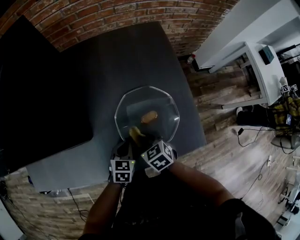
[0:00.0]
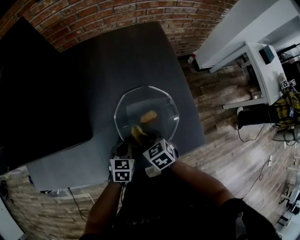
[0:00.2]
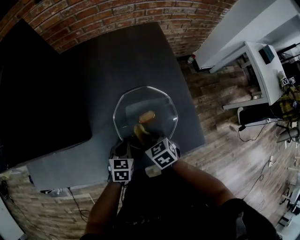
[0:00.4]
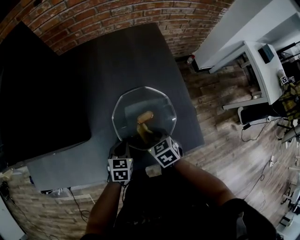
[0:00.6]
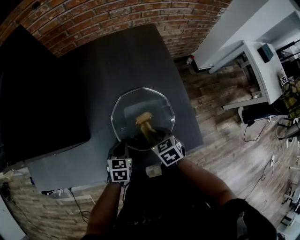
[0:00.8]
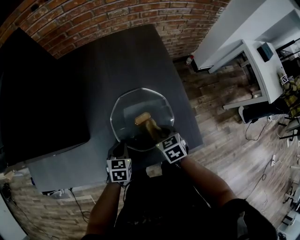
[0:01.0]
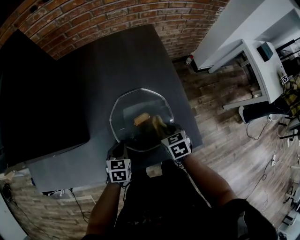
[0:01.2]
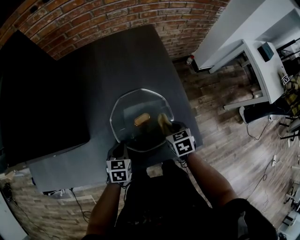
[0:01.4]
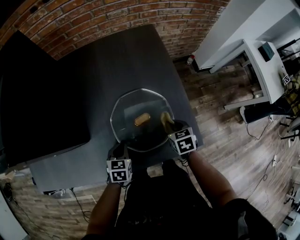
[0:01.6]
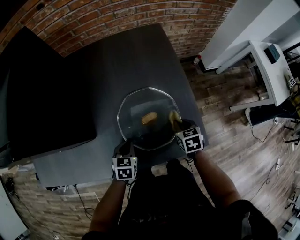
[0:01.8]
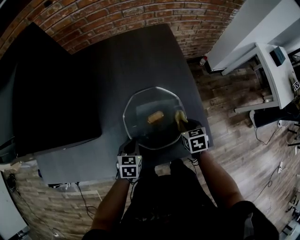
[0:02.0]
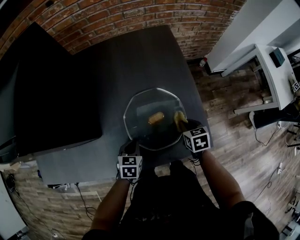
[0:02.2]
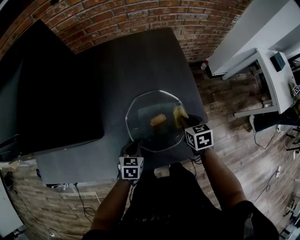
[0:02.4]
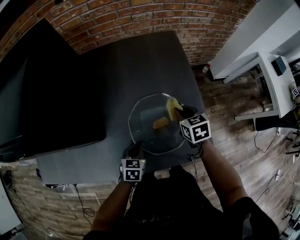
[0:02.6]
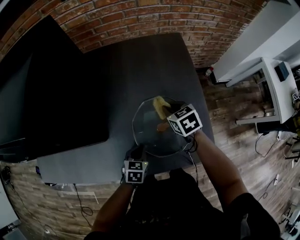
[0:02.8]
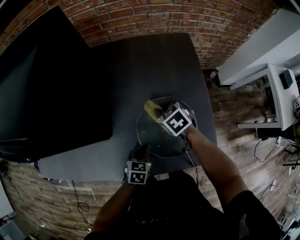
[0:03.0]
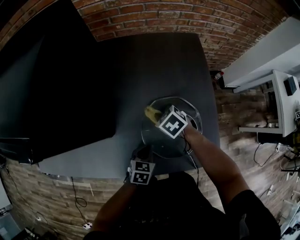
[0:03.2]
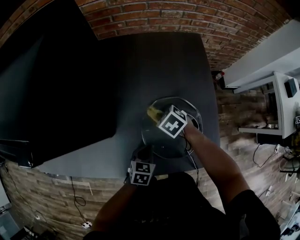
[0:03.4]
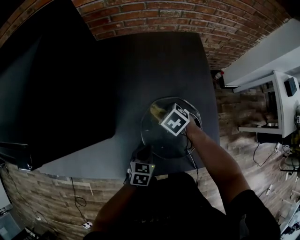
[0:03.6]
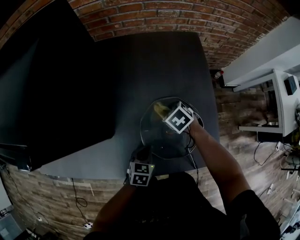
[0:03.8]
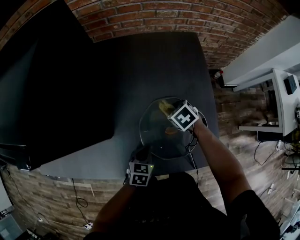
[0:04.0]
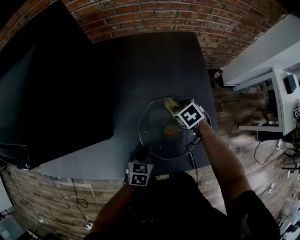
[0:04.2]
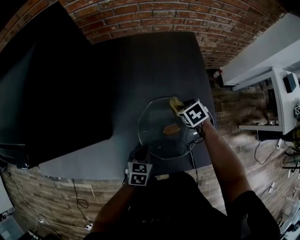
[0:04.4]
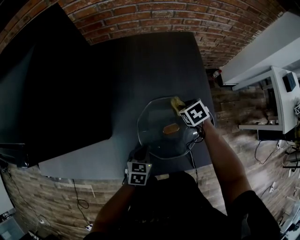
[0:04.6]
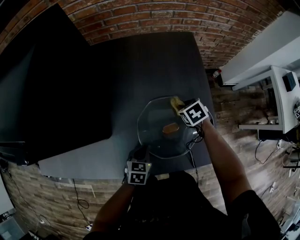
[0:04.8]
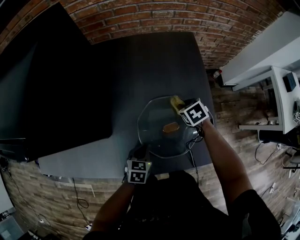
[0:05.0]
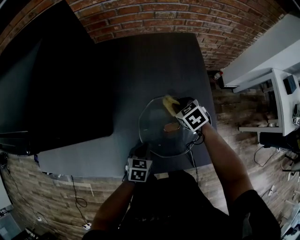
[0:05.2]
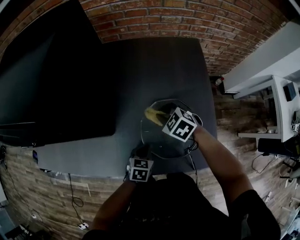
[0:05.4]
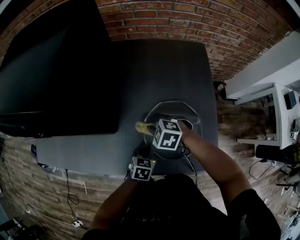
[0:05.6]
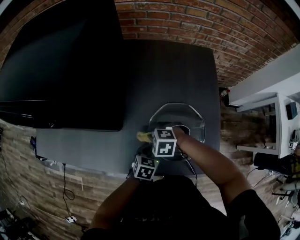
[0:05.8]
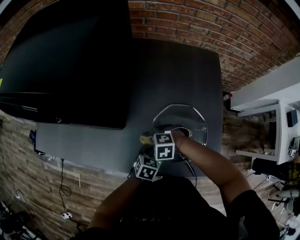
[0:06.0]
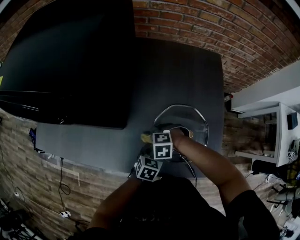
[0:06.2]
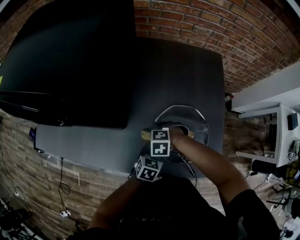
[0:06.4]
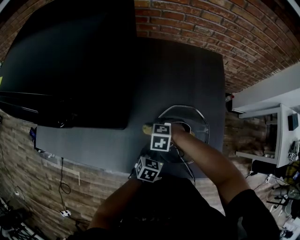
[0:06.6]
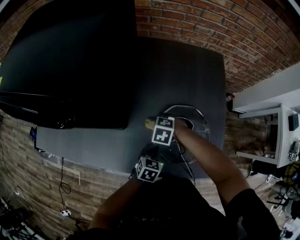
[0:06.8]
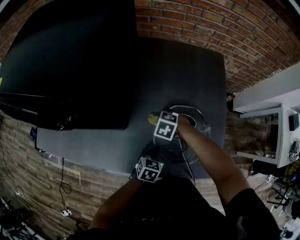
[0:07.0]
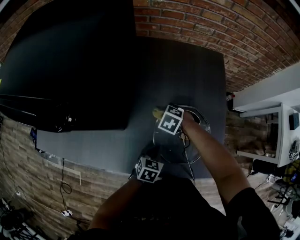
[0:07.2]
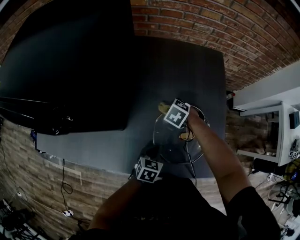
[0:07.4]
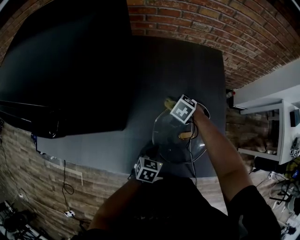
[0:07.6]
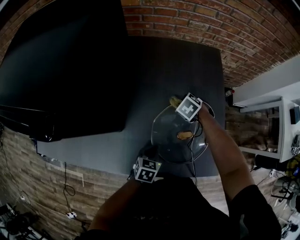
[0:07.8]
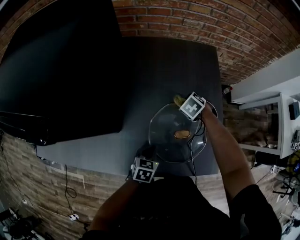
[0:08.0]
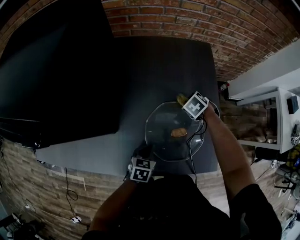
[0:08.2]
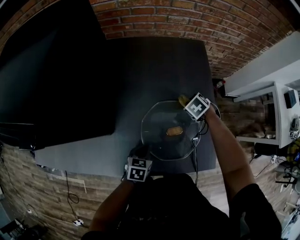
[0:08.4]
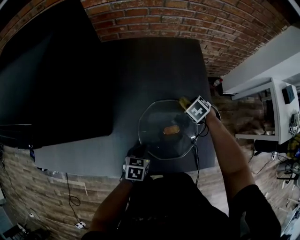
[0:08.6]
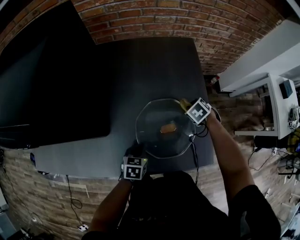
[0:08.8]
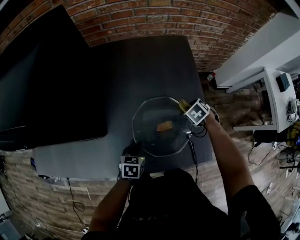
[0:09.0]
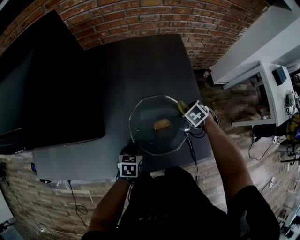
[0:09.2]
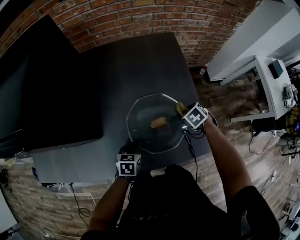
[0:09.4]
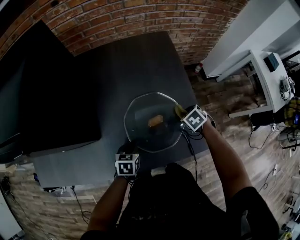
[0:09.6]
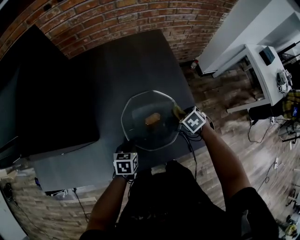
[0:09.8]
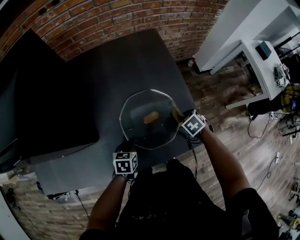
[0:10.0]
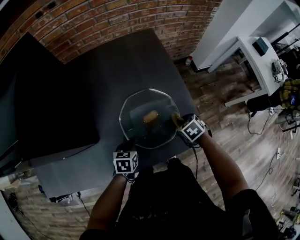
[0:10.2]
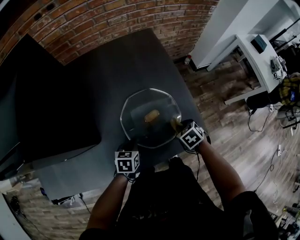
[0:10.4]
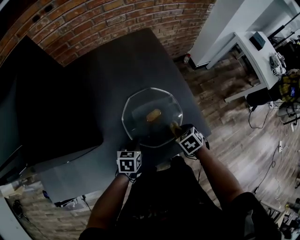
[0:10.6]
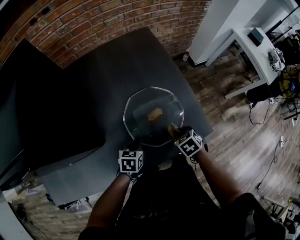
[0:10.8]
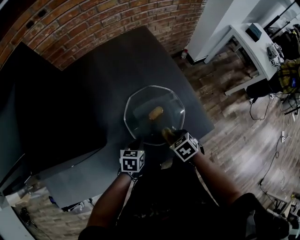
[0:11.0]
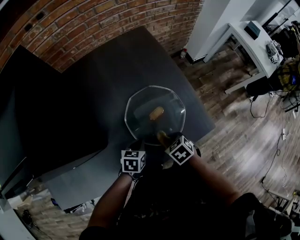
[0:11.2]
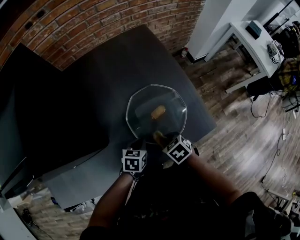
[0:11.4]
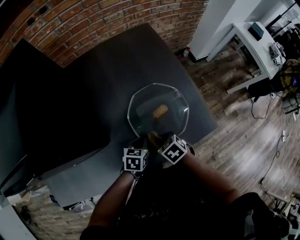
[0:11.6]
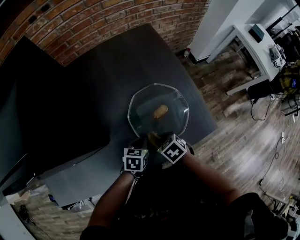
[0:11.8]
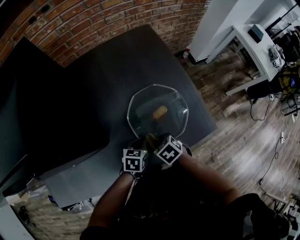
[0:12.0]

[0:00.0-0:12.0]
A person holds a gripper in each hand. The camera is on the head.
0:00.0 to 0:01.6: The right gripper shifts some 15 cm to the right, and rotates some 20 degrees.
0:01.6 to 0:03.0: The right gripper shifts about 20 cm to the left and forward, and changes its angle by some 30 degrees.
0:03.0 to 0:04.4: The right gripper is displaced to the right and downward by approximately 10 cm.
0:04.4 to 0:06.0: The right gripper moves roughly 25 cm, and rolls counterclockwise, seen from behind, by approximately 70 degrees.
0:06.0 to 0:07.6: The right gripper changes place by some 20 cm, and rotates roughly 40 degrees.
0:07.6 to 0:09.0: The right gripper moves about 20 cm, and swivels about 20 degrees.
0:09.0 to 0:10.4: The right gripper ends up approximately 15 cm from where it was, and changes its angle by some 20 degrees.
0:10.4 to 0:12.0: The right gripper heads to the left, covering roughly 15 cm.

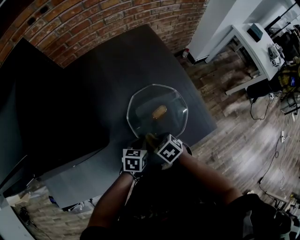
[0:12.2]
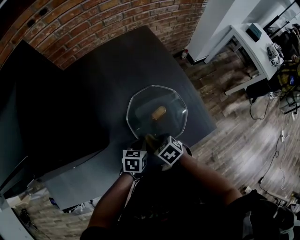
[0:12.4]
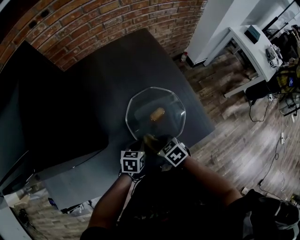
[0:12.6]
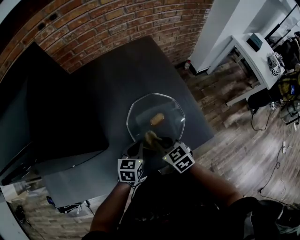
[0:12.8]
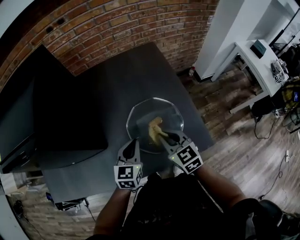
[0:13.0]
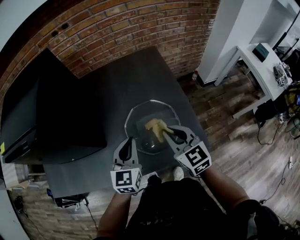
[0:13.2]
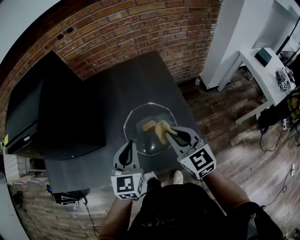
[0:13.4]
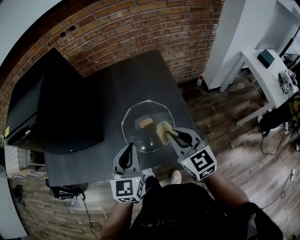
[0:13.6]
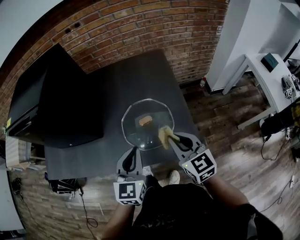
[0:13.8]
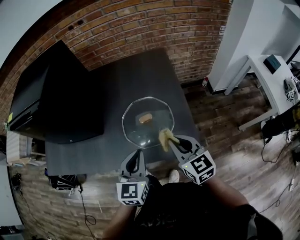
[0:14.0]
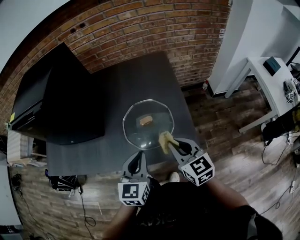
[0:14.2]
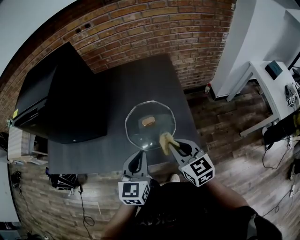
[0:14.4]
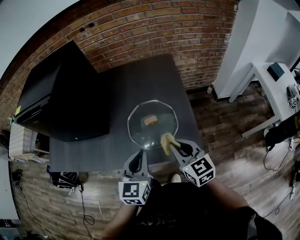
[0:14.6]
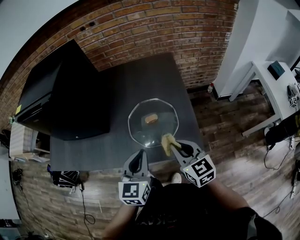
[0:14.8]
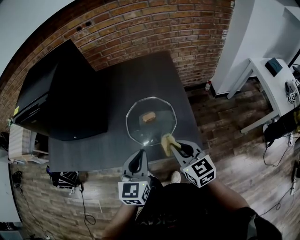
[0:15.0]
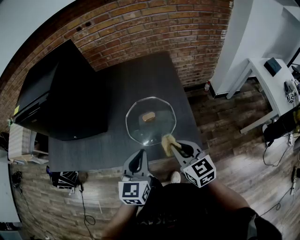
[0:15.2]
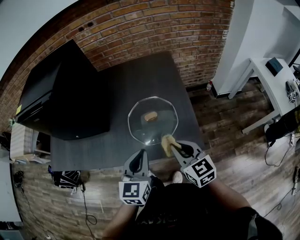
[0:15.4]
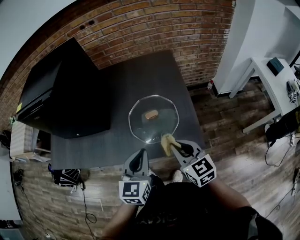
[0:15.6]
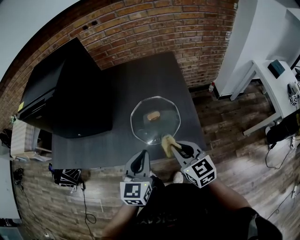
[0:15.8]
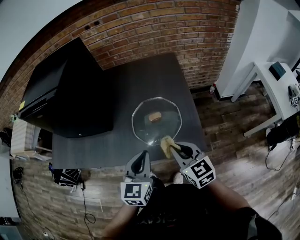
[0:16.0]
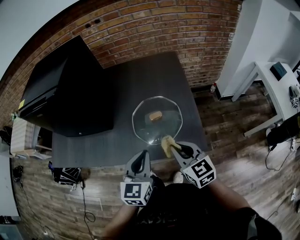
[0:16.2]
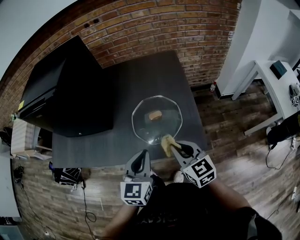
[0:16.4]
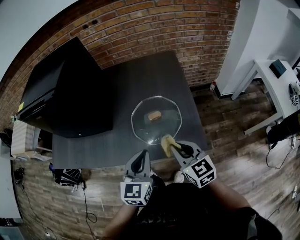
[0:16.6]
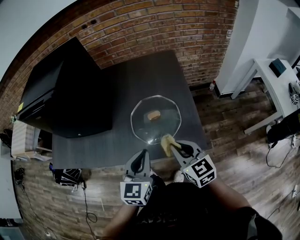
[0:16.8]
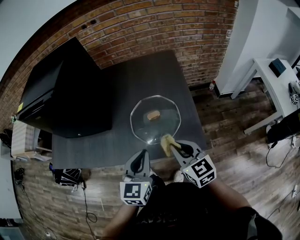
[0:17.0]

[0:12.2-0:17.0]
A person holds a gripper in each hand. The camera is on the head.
0:12.2 to 0:13.8: The left gripper shifts some 25 cm upward, and tips its fingers upward by some 30 degrees; the right gripper goes about 30 cm upward and to the right, and tips its fingers upward by about 50 degrees.
0:13.8 to 0:15.4: The right gripper heads backward, covering approximately 5 cm.
0:15.4 to 0:17.0: The grippers move only a little.

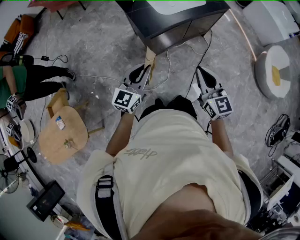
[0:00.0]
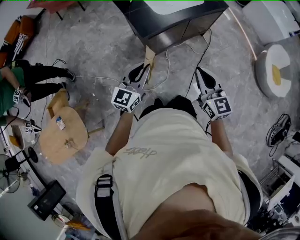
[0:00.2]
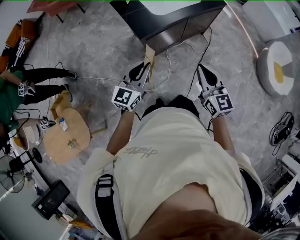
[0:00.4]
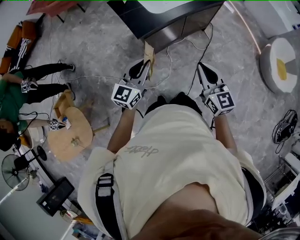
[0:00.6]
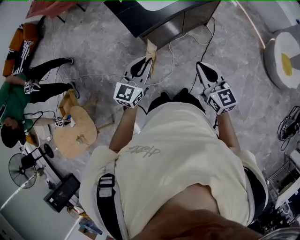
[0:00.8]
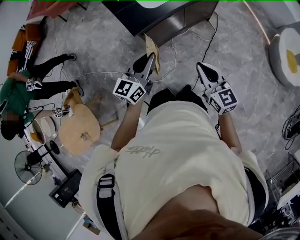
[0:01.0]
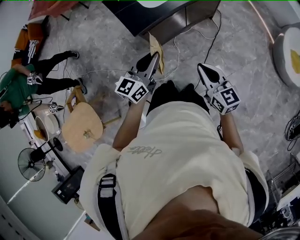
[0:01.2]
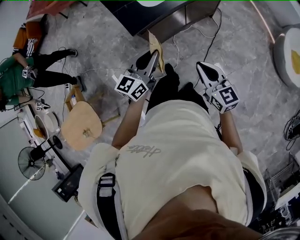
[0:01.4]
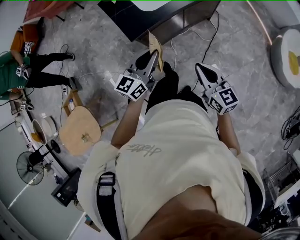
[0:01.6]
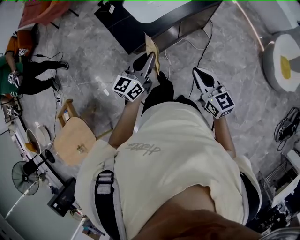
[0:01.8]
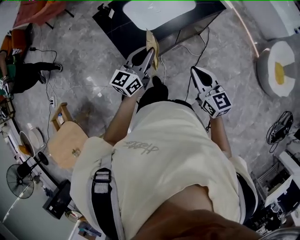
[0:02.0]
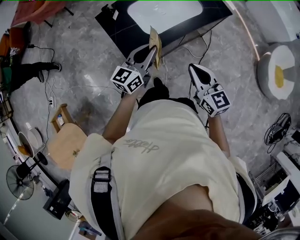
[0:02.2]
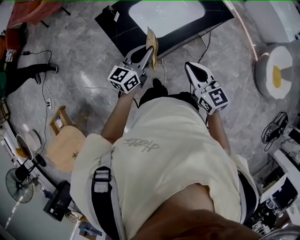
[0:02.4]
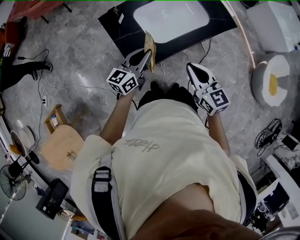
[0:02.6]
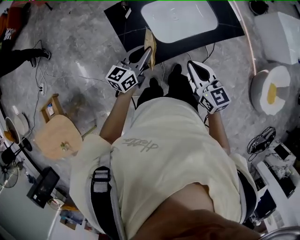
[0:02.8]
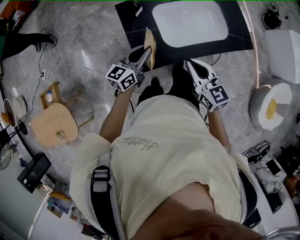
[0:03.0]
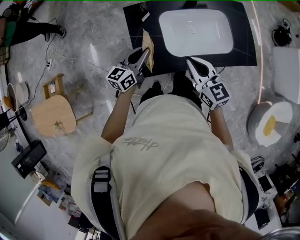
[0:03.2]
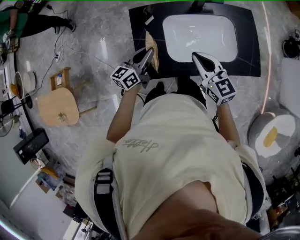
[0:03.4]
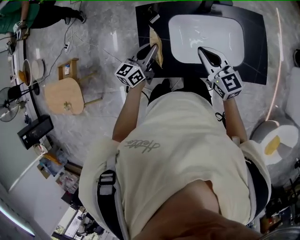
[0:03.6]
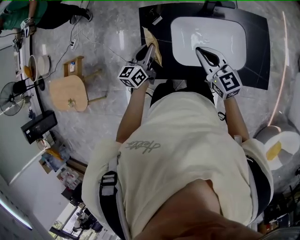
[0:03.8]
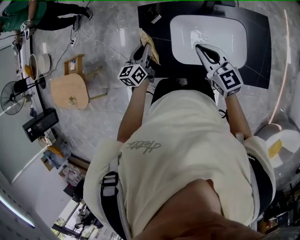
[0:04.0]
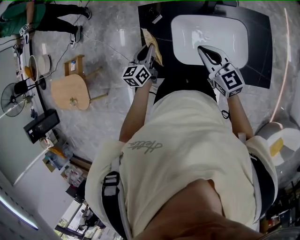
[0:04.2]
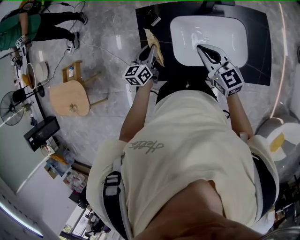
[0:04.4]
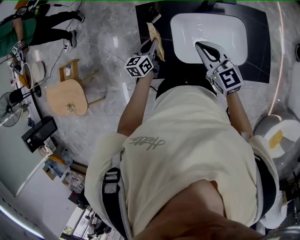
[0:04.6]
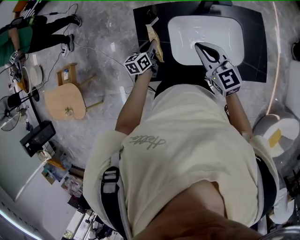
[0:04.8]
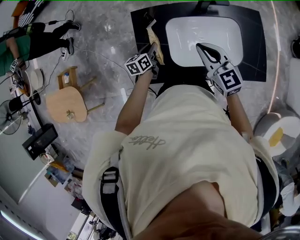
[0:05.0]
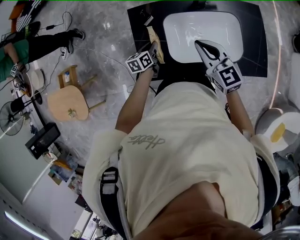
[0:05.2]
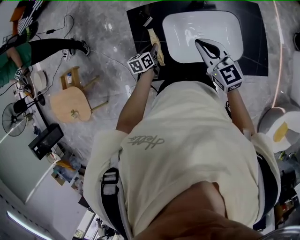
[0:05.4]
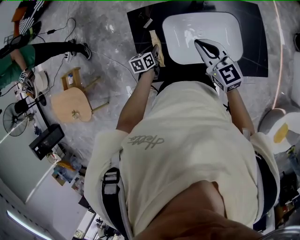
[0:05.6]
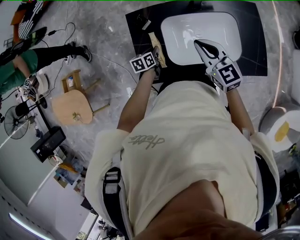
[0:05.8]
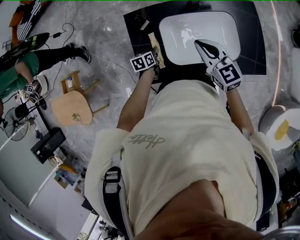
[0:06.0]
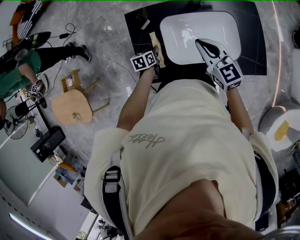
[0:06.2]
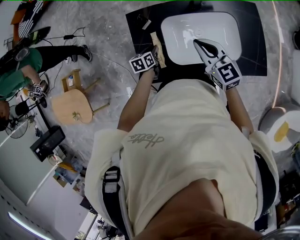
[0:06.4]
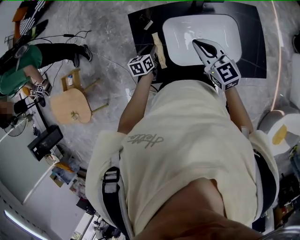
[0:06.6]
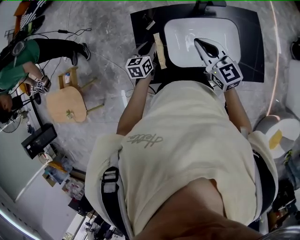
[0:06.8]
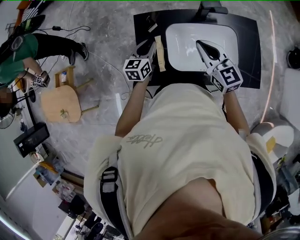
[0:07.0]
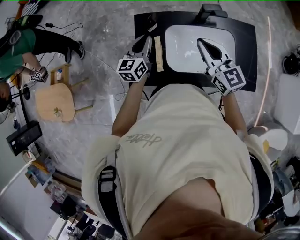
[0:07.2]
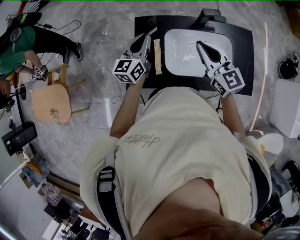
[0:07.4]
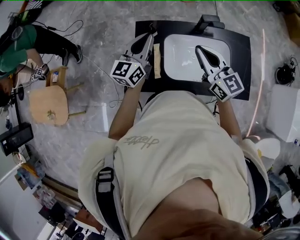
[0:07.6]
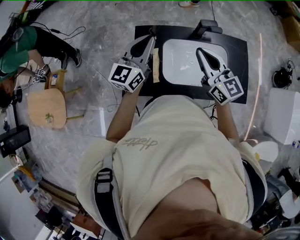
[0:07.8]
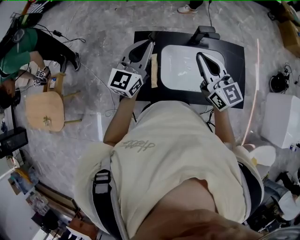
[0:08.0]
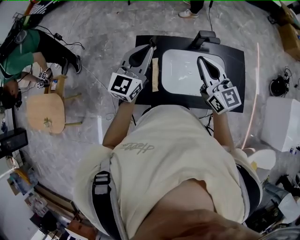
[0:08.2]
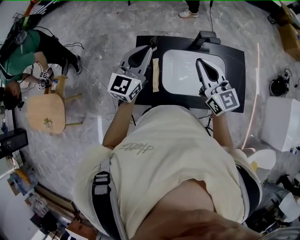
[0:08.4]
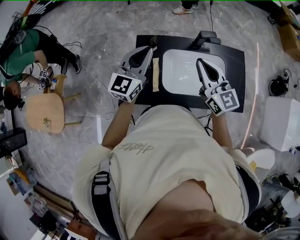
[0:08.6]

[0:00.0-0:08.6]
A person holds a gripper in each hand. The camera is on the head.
0:00.0 to 0:01.4: The right gripper goes about 15 cm to the right, downward and forward. Meanwhile the left gripper heads to the right and forward, covering approximately 20 cm.
0:01.4 to 0:02.8: The grippers both shift forward and to the left by roughly 35 cm.
0:02.8 to 0:04.4: The left gripper ends up approximately 15 cm from where it was, and swivels about 40 degrees. The right gripper changes place by some 25 cm, and rotates approximately 30 degrees.
0:04.4 to 0:05.8: The left gripper shifts roughly 15 cm downward, and rotates about 30 degrees.
0:05.8 to 0:07.2: The right gripper moves upward, some 10 cm, while the left gripper moves upward, roughly 25 cm, and tips its fingers upward by roughly 40 degrees.
0:07.2 to 0:08.6: The right gripper shifts roughly 5 cm upward; the left gripper moves upward, about 15 cm, and rotates roughly 20 degrees.
